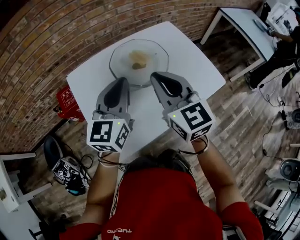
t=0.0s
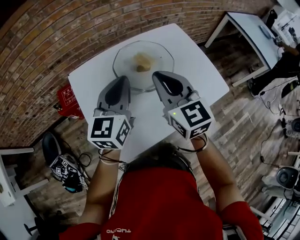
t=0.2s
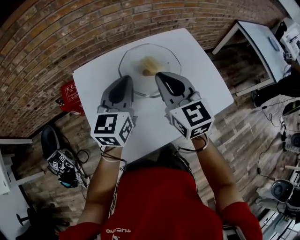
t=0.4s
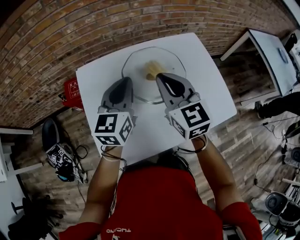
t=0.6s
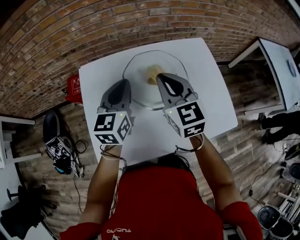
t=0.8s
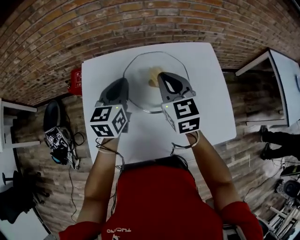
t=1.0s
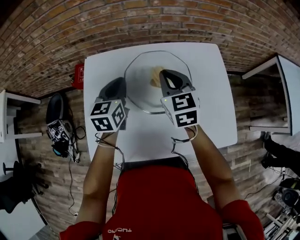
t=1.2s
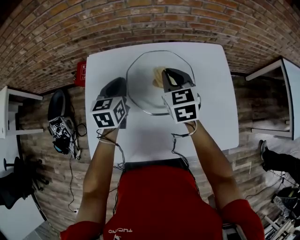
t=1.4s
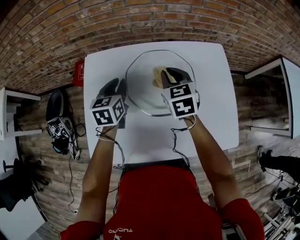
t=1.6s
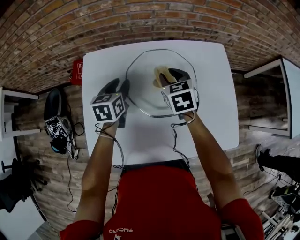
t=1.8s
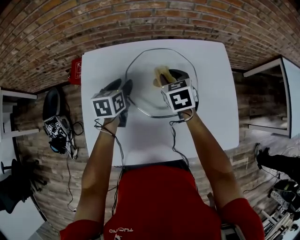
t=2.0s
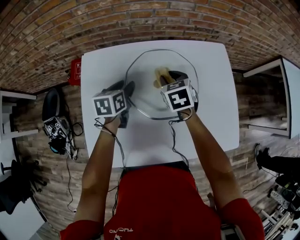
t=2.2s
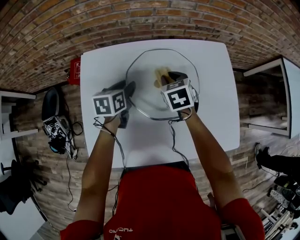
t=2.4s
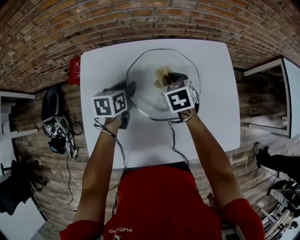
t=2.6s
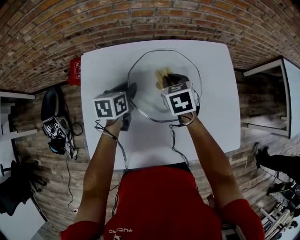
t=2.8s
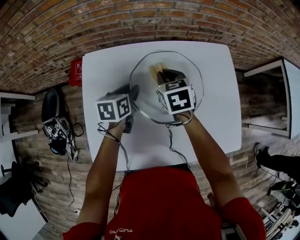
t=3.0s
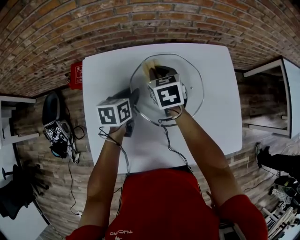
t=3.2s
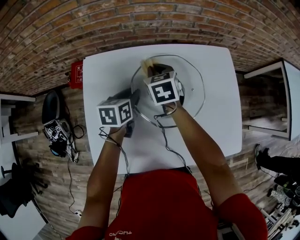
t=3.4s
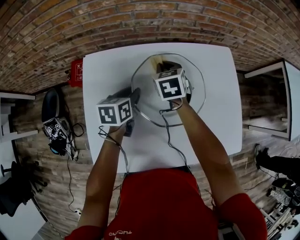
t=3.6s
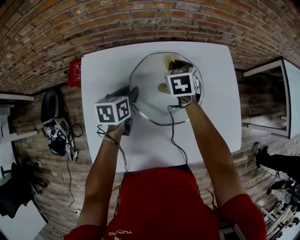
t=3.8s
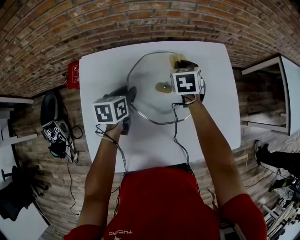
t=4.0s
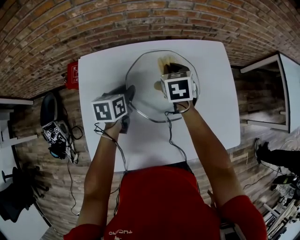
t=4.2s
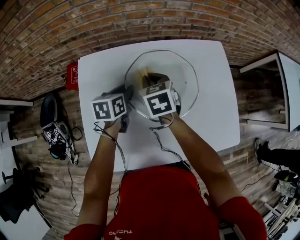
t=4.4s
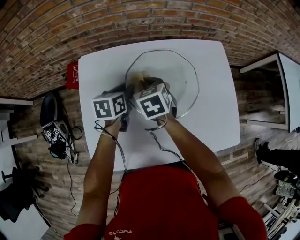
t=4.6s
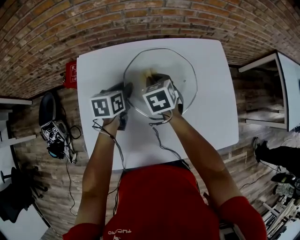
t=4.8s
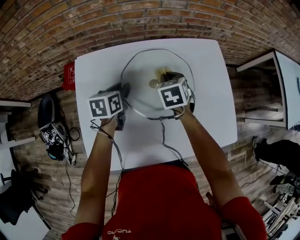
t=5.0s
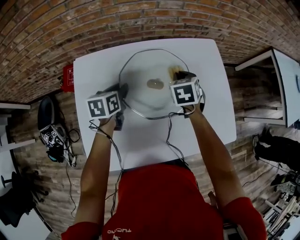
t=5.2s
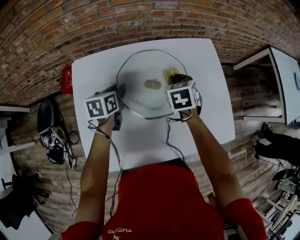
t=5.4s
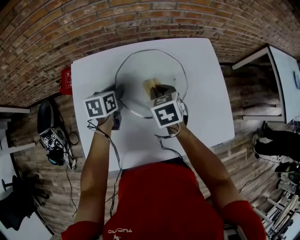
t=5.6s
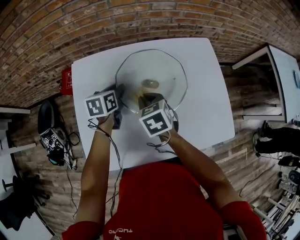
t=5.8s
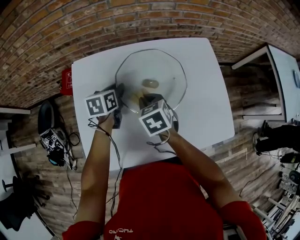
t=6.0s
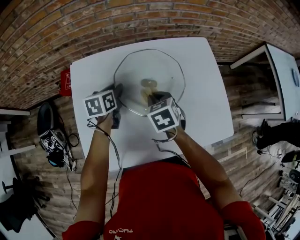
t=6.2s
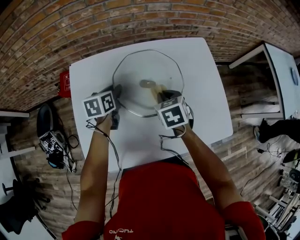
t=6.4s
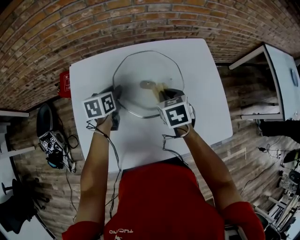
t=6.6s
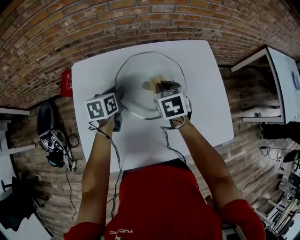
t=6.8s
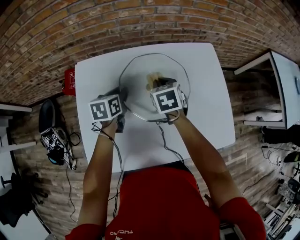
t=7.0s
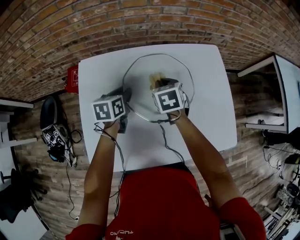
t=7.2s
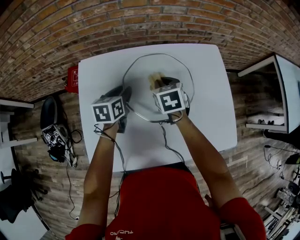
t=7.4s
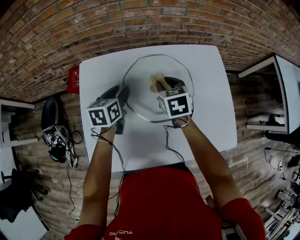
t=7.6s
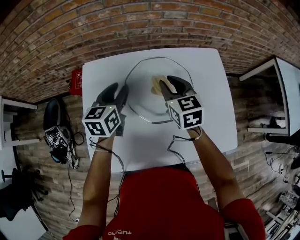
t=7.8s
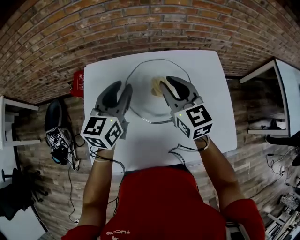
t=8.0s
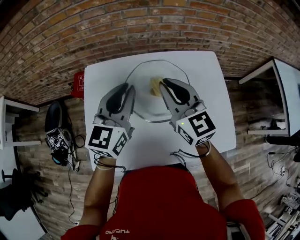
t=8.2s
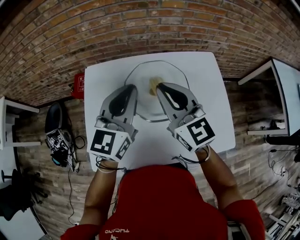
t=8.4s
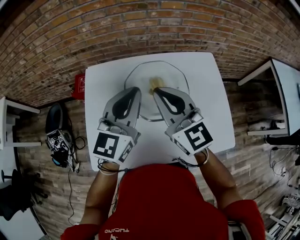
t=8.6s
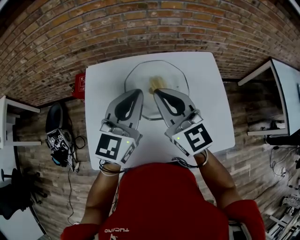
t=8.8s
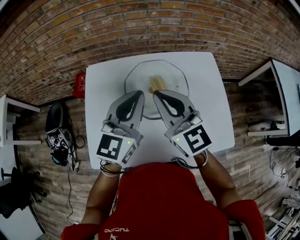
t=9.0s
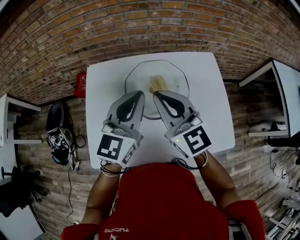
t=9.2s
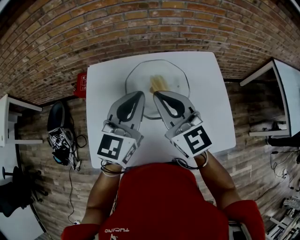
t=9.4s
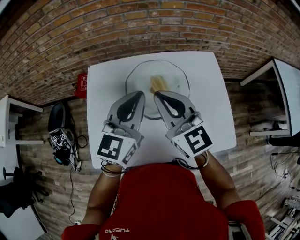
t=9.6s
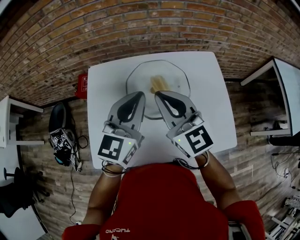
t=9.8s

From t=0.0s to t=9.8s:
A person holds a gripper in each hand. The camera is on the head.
From t=0.0s to t=1.4s: The two grippers go approximately 25 cm forward and downward. The left gripper swivels some 40 degrees. Meanwhile the right gripper rotates some 20 degrees.
From t=1.4s to t=2.8s: Both grippers move downward, about 10 cm. The right gripper swivels some 20 degrees; the left gripper changes its angle by approximately 20 degrees, and opens its fingers.
From t=2.8s to t=4.2s: The right gripper swings left and right, about 15 cm each way, with 2 reversals.
From t=4.2s to t=5.6s: The right gripper goes left and right, some 15 cm each way, reversing 2 times.
From t=5.6s to t=7.0s: The right gripper swings left and right, about 10 cm each way, with 2 reversals.
From t=7.0s to t=8.4s: The right gripper is displaced upward and backward by some 25 cm, and angles its fingers upward, by approximately 50 degrees. The left gripper moves upward, roughly 25 cm, angles its fingers upward, by approximately 40 degrees, and closes its fingers.
From t=8.4s to t=9.8s: The grippers stay close to where they were, moving slightly.

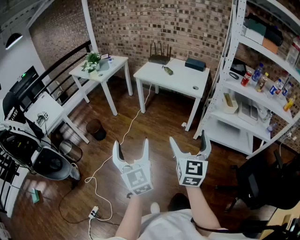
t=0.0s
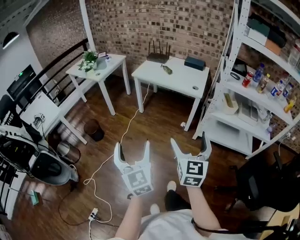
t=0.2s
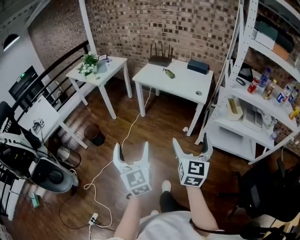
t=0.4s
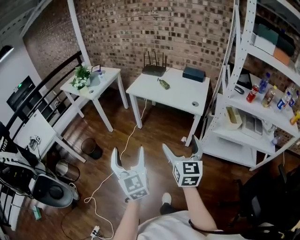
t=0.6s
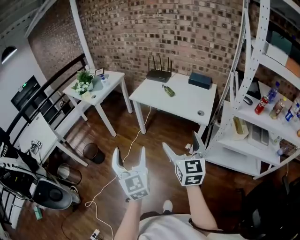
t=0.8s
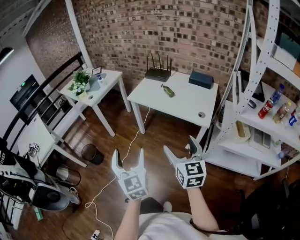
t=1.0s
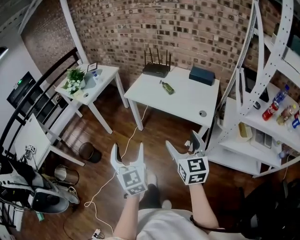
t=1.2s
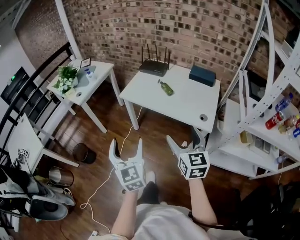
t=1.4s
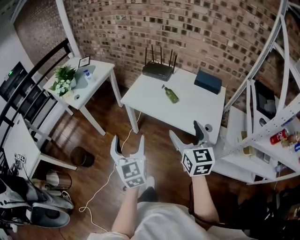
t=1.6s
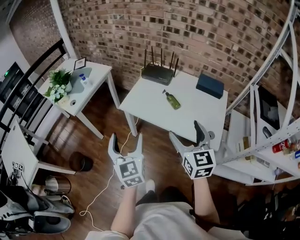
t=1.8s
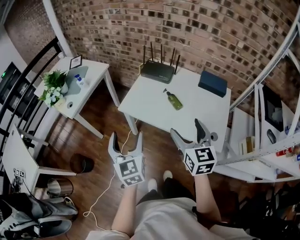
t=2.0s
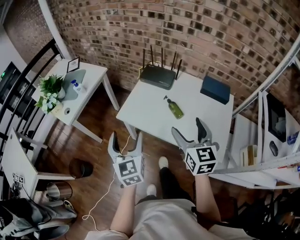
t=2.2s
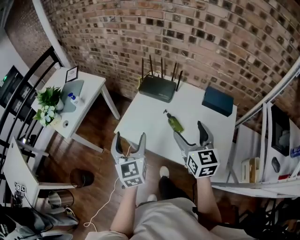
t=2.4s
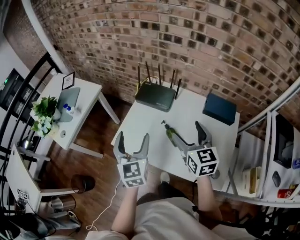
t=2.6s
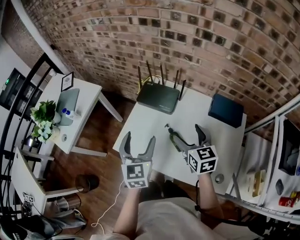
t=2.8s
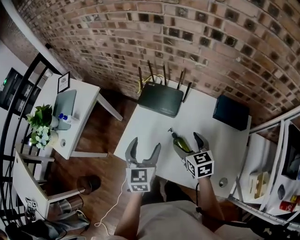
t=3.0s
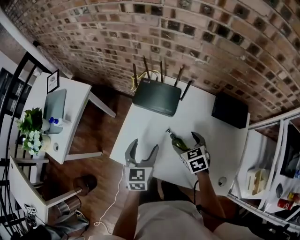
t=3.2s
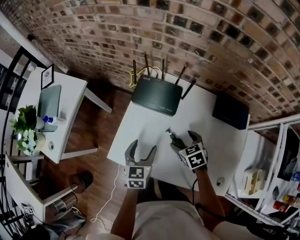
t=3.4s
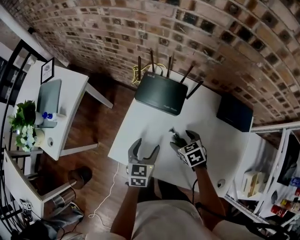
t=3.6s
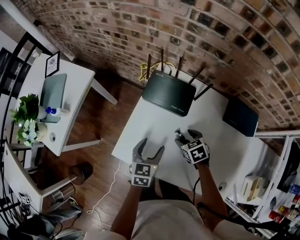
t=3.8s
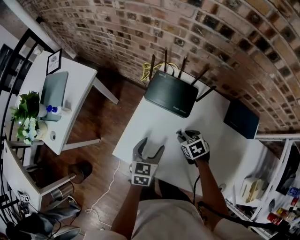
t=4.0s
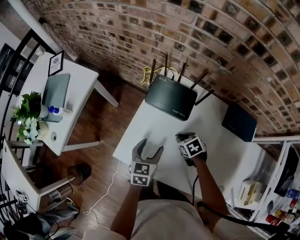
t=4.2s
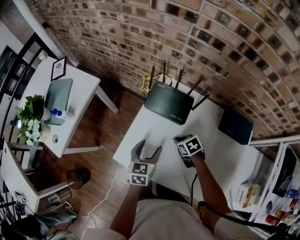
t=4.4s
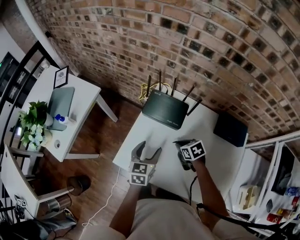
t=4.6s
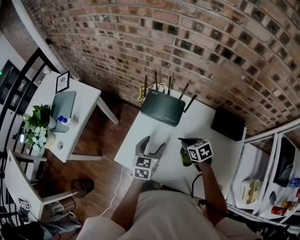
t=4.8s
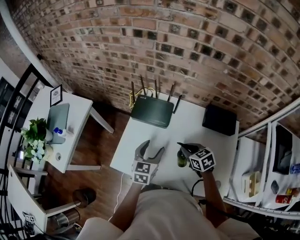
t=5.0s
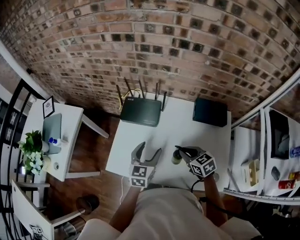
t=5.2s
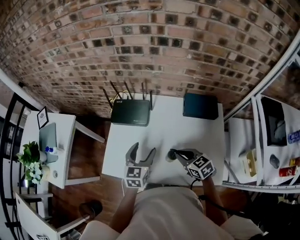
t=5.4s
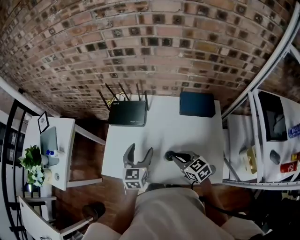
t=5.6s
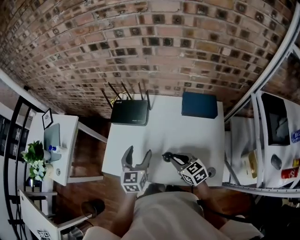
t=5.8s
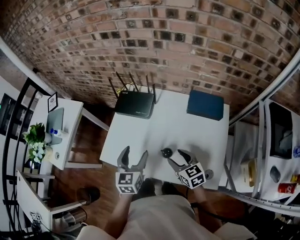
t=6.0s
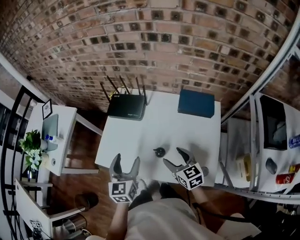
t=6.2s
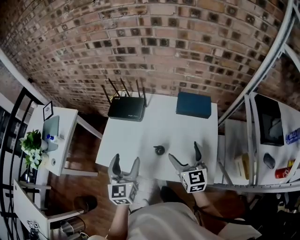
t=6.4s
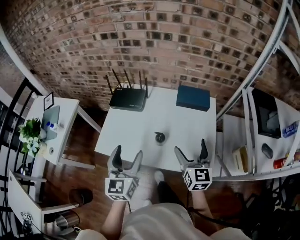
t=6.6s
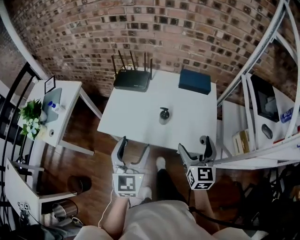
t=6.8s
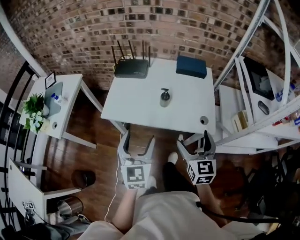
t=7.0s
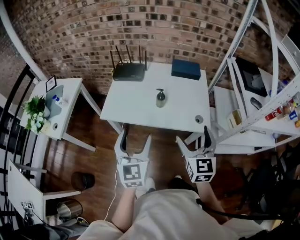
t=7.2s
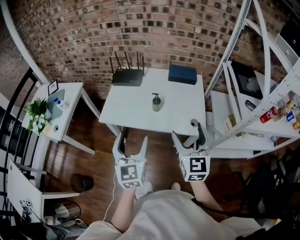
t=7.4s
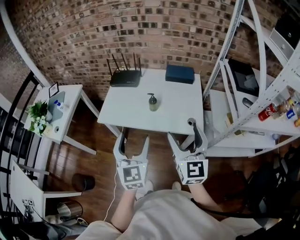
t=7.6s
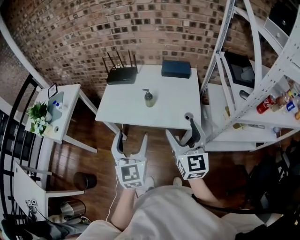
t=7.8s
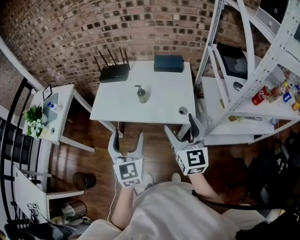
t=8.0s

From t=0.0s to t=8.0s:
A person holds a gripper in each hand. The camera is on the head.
From t=0.0s to t=1.6s: Both grippers are carried forward, roughly 60 cm.
From t=1.6s to t=3.2s: The pair of grippers is taken forward, roughly 50 cm. The left gripper rotates approximately 30 degrees. The right gripper moves downward, about 25 cm, and angles its fingers downward, by some 40 degrees.
From t=3.2s to t=4.8s: The right gripper moves approximately 10 cm downward and comes back, and closes its fingers, while the left gripper moves about 10 cm downward and comes back.
From t=4.8s to t=6.4s: The right gripper travels backward, upward and to the right by approximately 25 cm, angles its fingers upward, by about 40 degrees, and opens up. Meanwhile the left gripper is displaced backward and upward by approximately 20 cm.
From t=6.4s to t=8.0s: Both grippers move backward, approximately 30 cm.

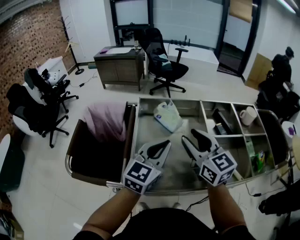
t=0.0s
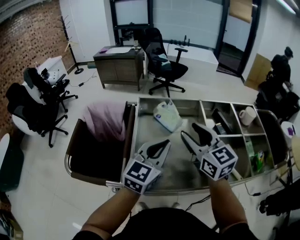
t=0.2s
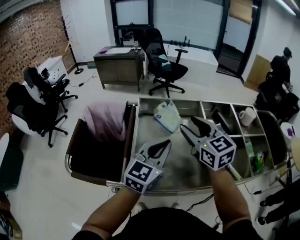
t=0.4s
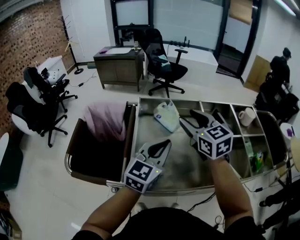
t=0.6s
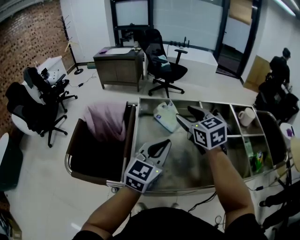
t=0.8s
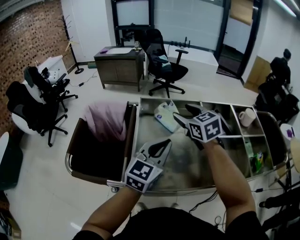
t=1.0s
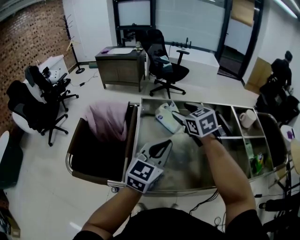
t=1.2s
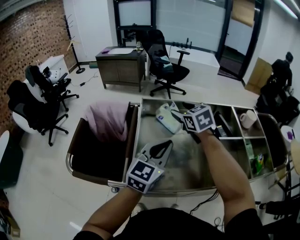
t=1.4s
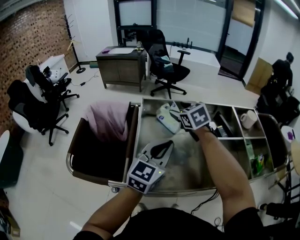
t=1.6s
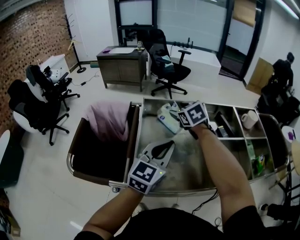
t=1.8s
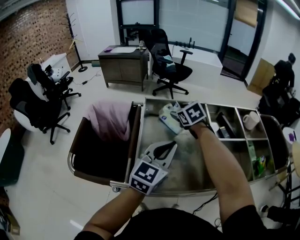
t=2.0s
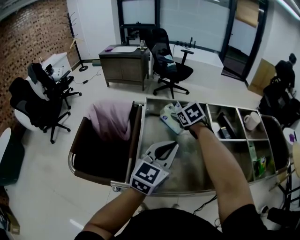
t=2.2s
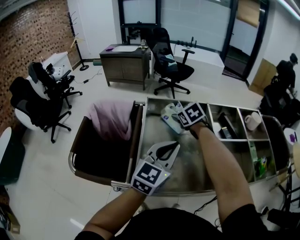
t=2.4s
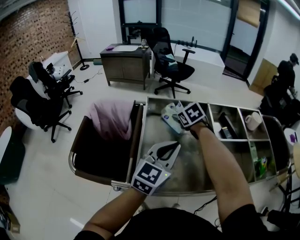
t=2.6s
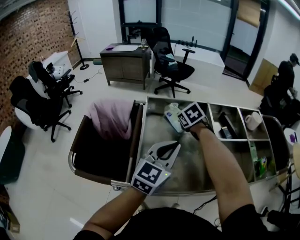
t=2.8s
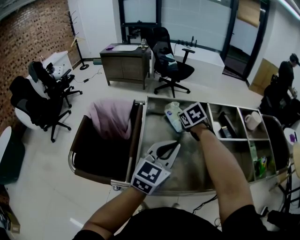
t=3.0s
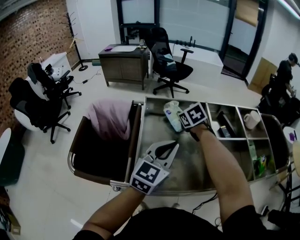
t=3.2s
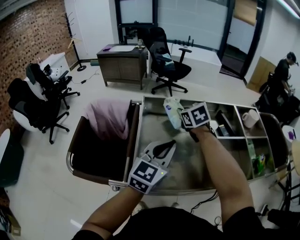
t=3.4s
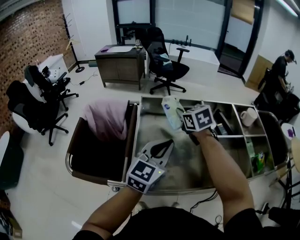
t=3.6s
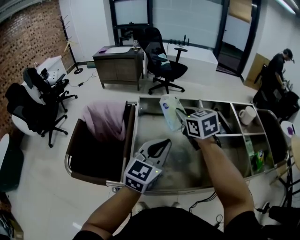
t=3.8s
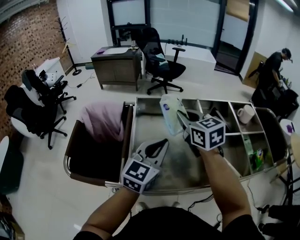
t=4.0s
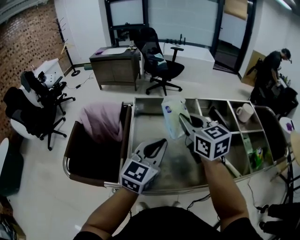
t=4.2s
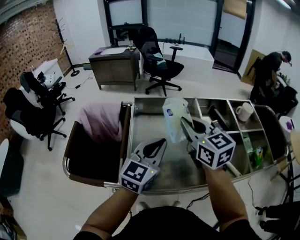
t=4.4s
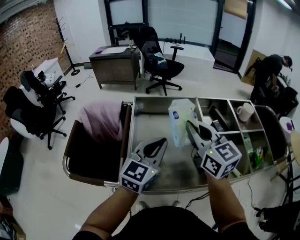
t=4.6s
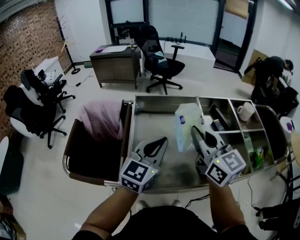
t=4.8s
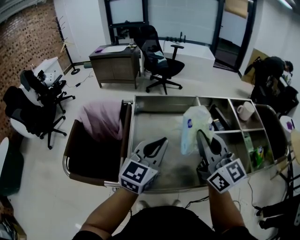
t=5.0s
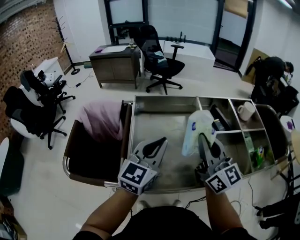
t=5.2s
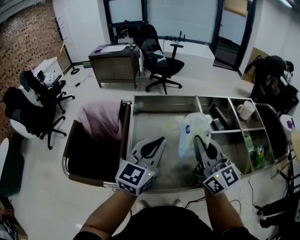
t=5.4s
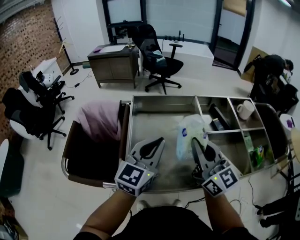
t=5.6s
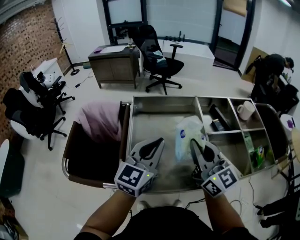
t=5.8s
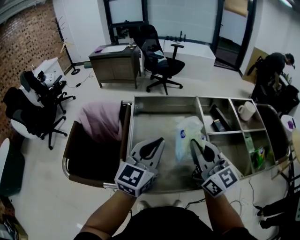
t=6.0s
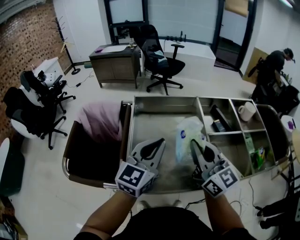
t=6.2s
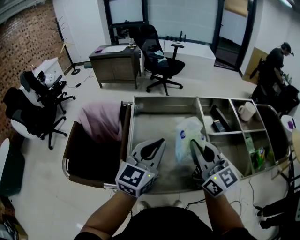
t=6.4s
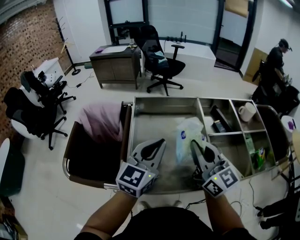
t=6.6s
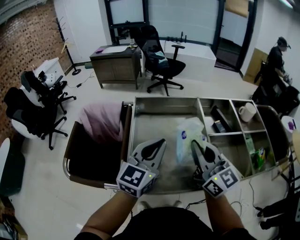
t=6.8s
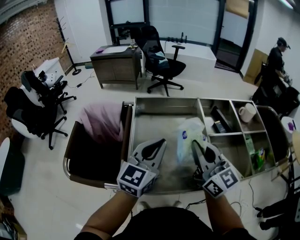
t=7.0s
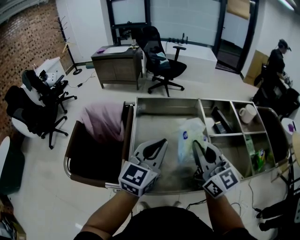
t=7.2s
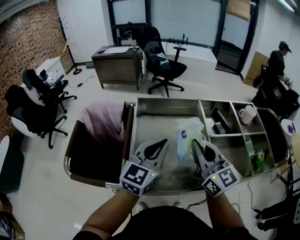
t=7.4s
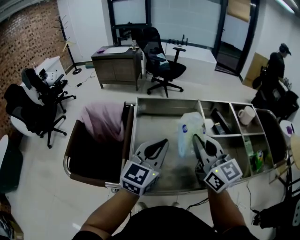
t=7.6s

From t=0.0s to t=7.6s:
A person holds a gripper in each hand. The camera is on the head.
From t=0.0s to t=1.6s: The right gripper travels forward by approximately 15 cm, and rotates about 30 degrees.
From t=1.6s to t=3.0s: The right gripper moves downward, some 5 cm, and closes up.
From t=3.0s to t=4.6s: The right gripper moves backward and upward, approximately 25 cm, and tilts its fingers about 40 degrees upward.
From t=4.6s to t=6.0s: The right gripper shifts by roughly 5 cm.
From t=6.0s to t=7.6s: There are only small adjustments of the grippers.
